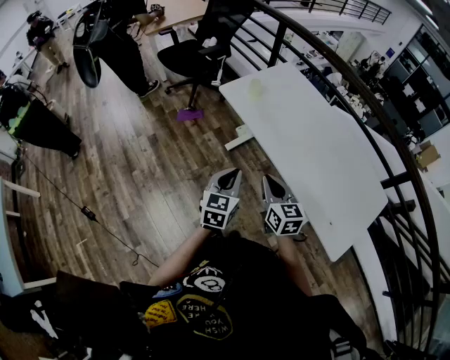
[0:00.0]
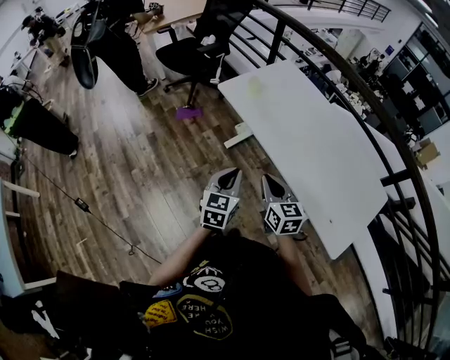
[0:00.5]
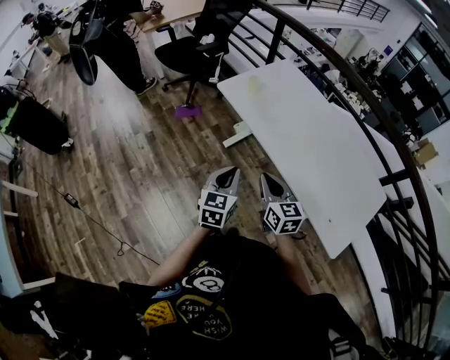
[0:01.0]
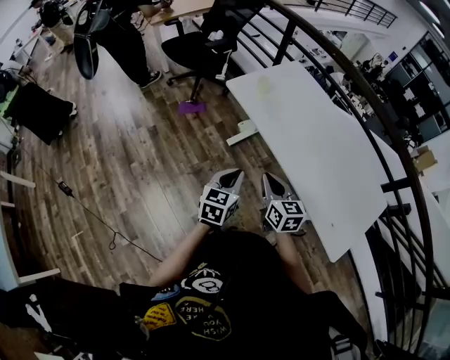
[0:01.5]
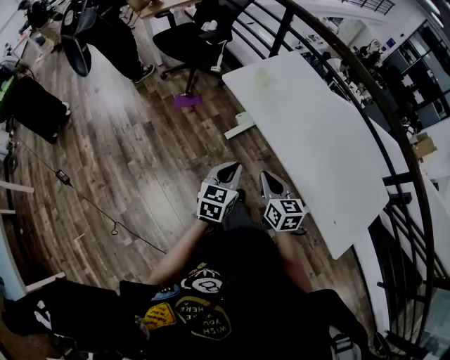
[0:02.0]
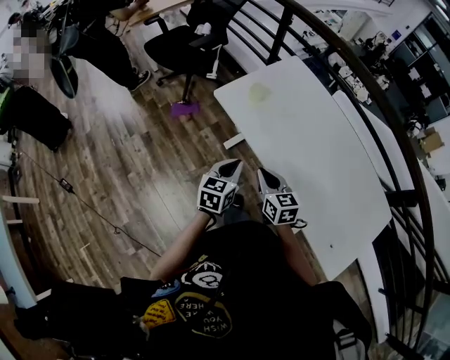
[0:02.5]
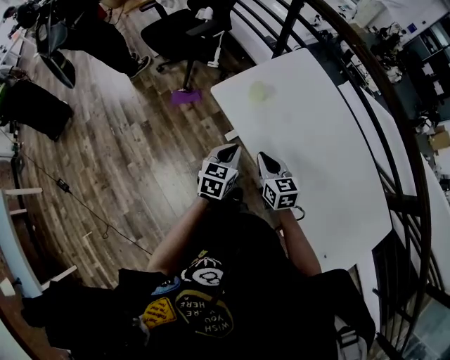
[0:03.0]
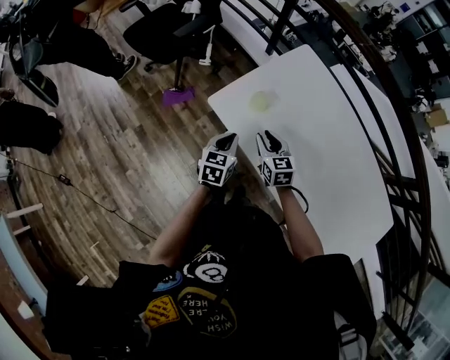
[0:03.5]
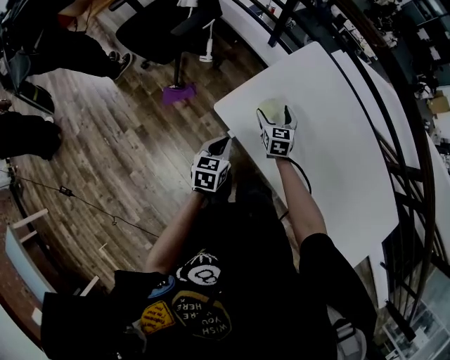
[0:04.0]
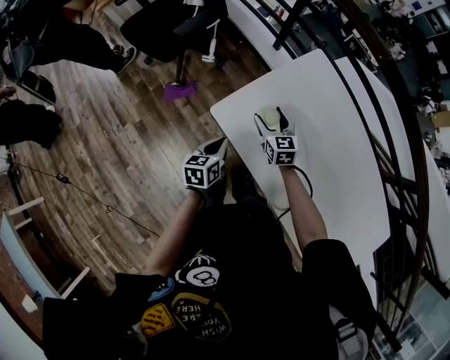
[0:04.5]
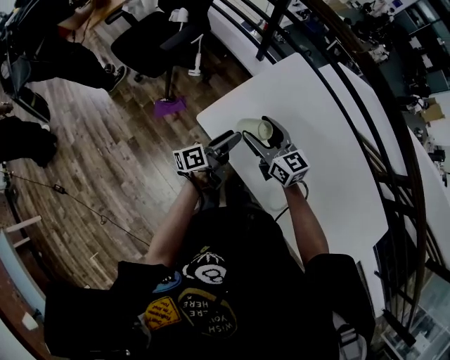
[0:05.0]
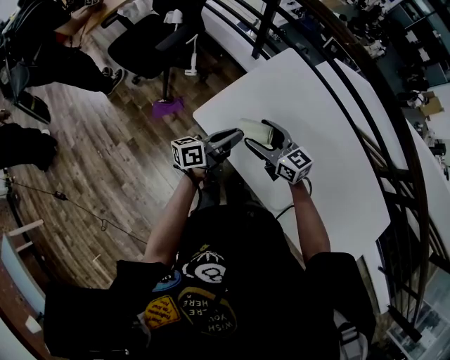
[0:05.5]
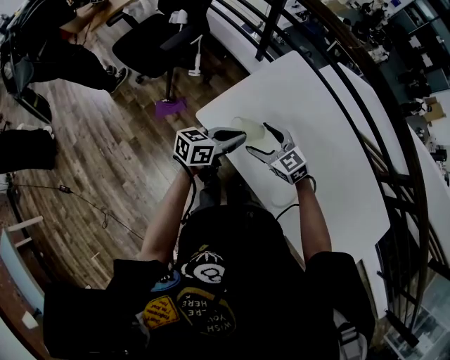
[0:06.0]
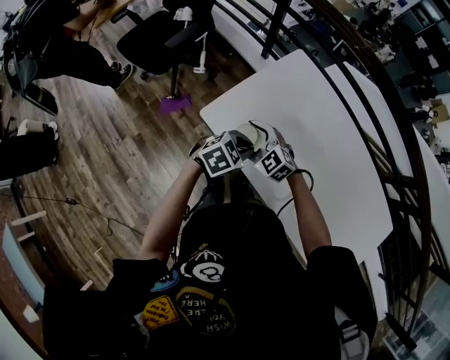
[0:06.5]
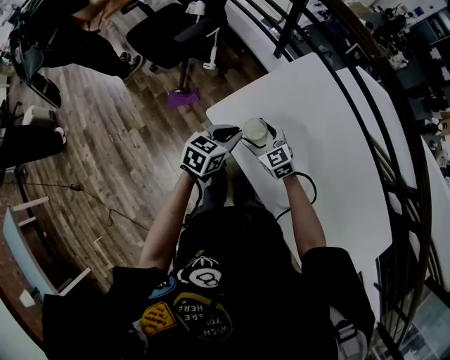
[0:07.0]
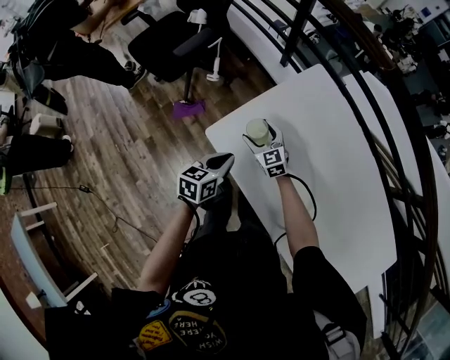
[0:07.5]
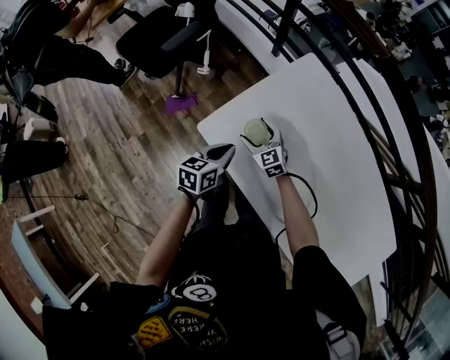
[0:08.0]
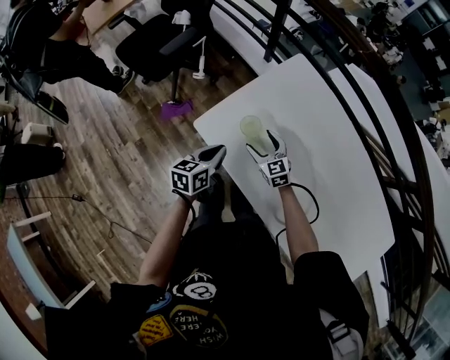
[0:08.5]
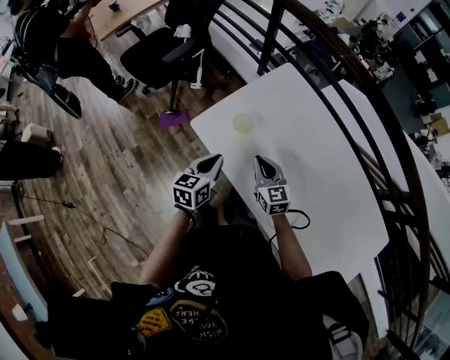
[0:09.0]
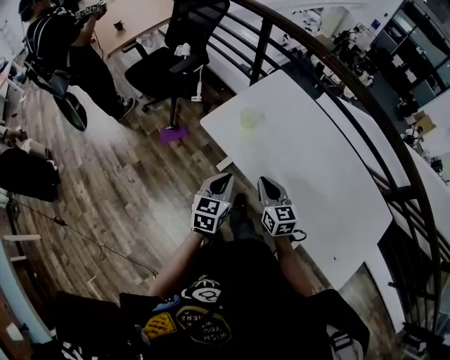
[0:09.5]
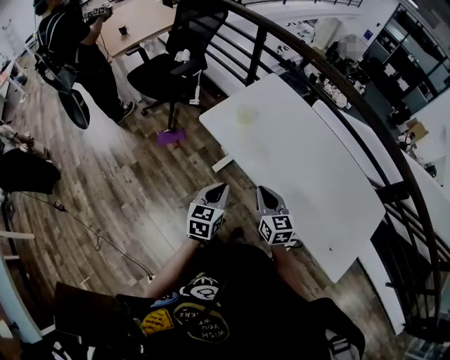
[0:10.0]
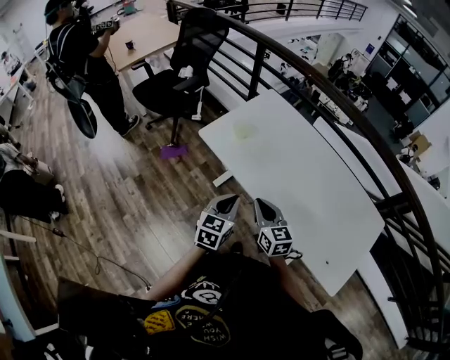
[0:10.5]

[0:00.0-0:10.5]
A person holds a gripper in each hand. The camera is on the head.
0:00.0 to 0:02.0: The right gripper shifts by about 5 cm; the left gripper changes place by approximately 5 cm.
0:02.0 to 0:04.0: The two grippers travel together, forward, about 50 cm. The right gripper changes its angle by some 20 degrees, and opens its fingers.
0:04.0 to 0:06.5: The left gripper ends up about 15 cm from where it was, rotates roughly 50 degrees, and opens, then closes once more, while the right gripper changes place by about 15 cm, and changes its angle by roughly 50 degrees.
0:06.5 to 0:08.5: The right gripper heads downward, covering approximately 10 cm, and swivels about 30 degrees. The left gripper shifts by roughly 10 cm, and twists some 50 degrees counterclockwise, seen from behind.
0:08.5 to 0:10.5: The grippers both shift backward and upward by approximately 40 cm. The left gripper changes its angle by about 30 degrees; the right gripper swivels approximately 20 degrees, and closes its fingers.

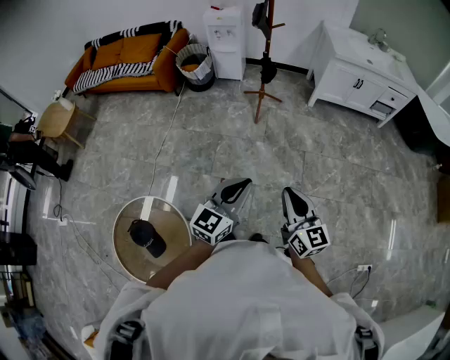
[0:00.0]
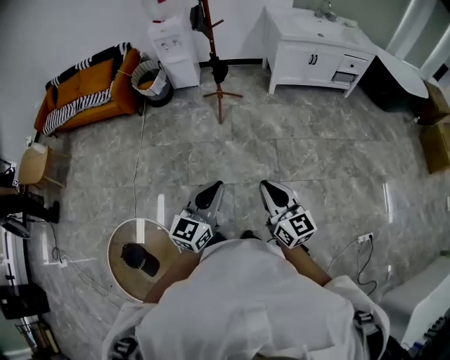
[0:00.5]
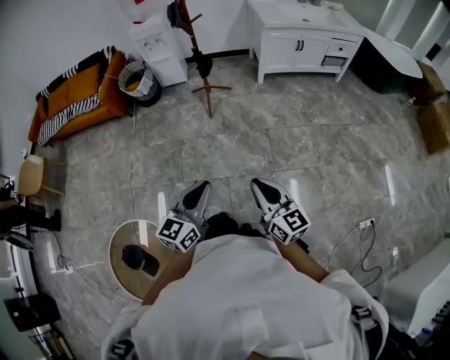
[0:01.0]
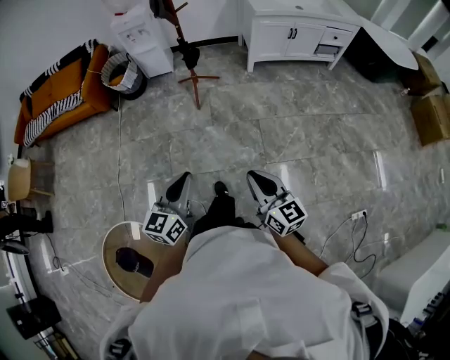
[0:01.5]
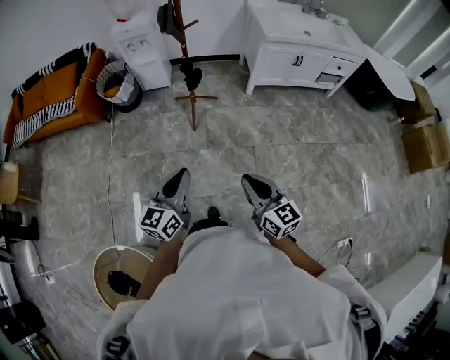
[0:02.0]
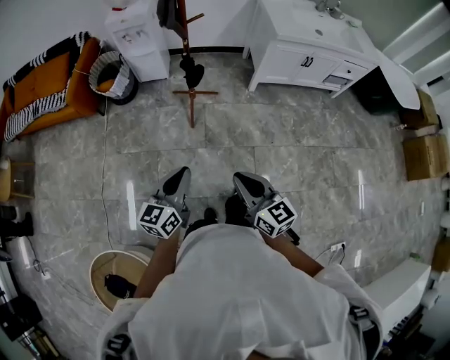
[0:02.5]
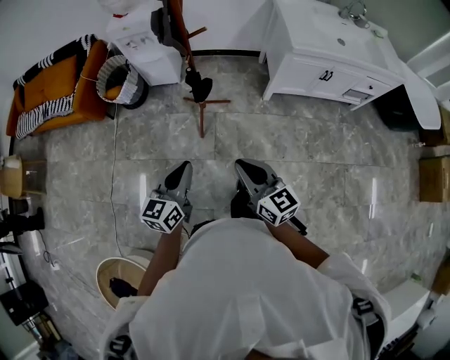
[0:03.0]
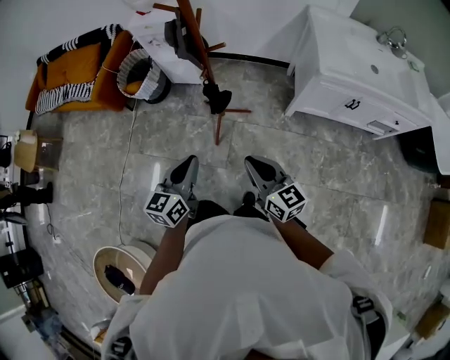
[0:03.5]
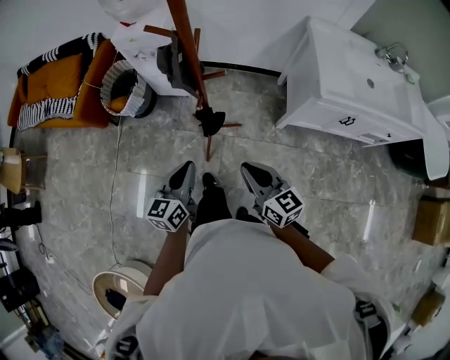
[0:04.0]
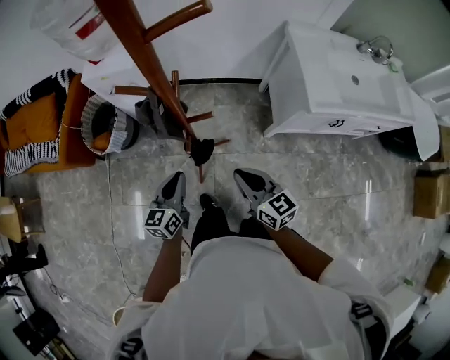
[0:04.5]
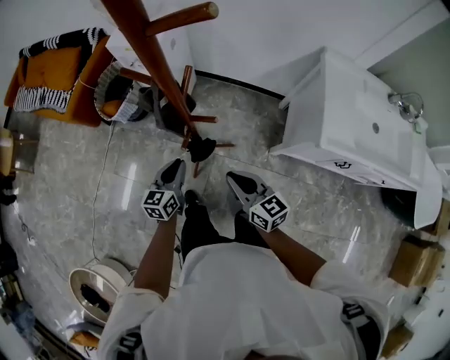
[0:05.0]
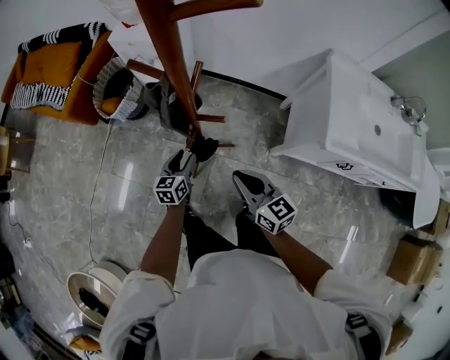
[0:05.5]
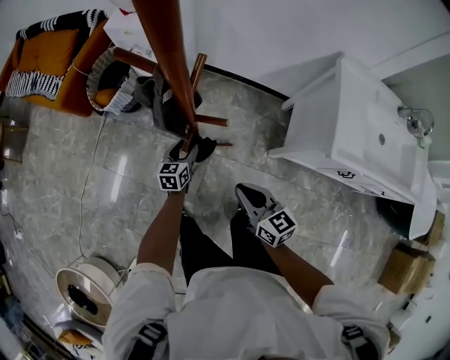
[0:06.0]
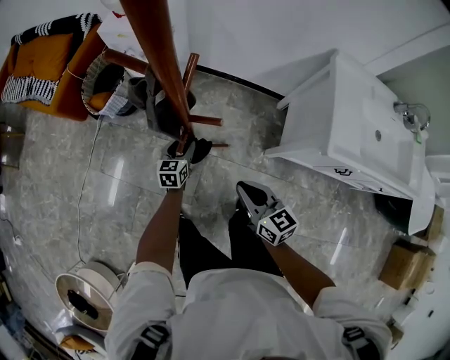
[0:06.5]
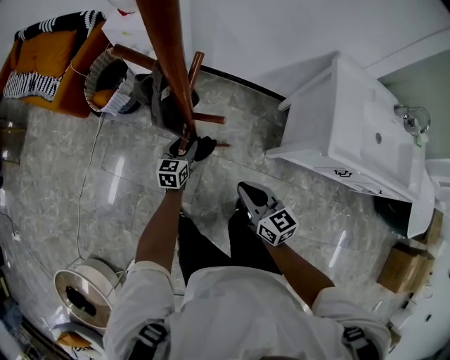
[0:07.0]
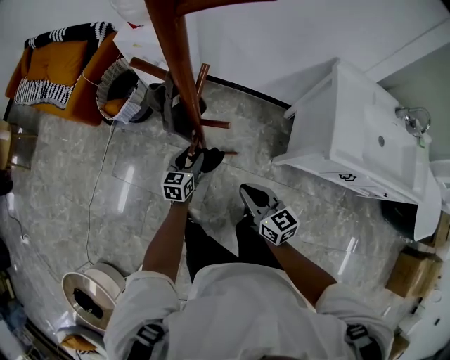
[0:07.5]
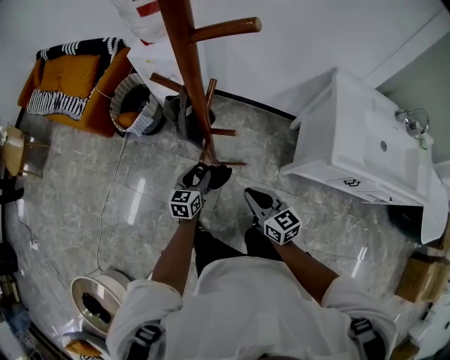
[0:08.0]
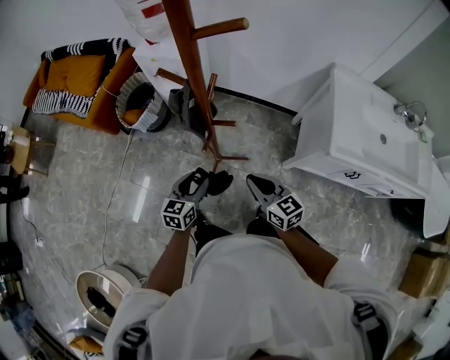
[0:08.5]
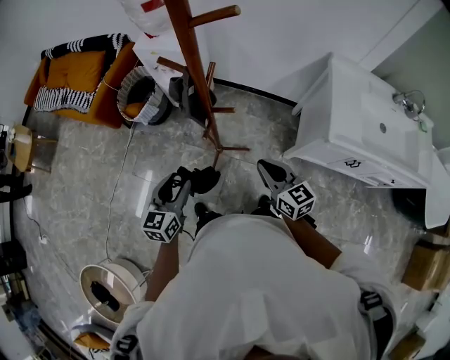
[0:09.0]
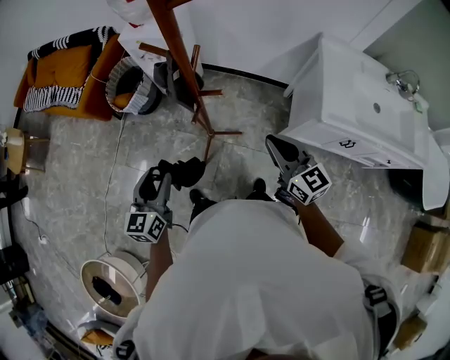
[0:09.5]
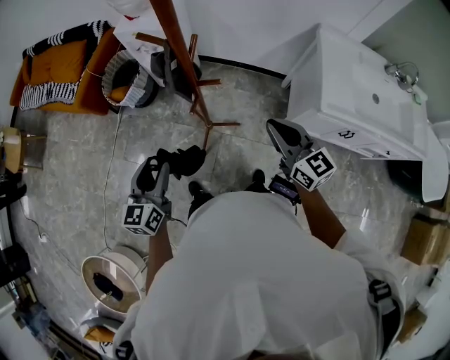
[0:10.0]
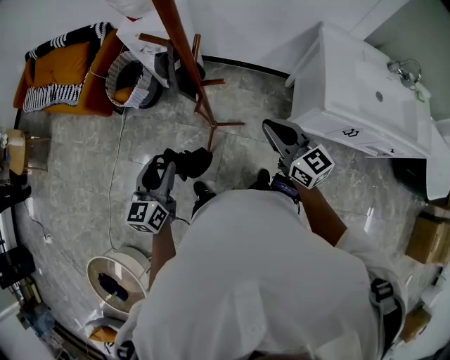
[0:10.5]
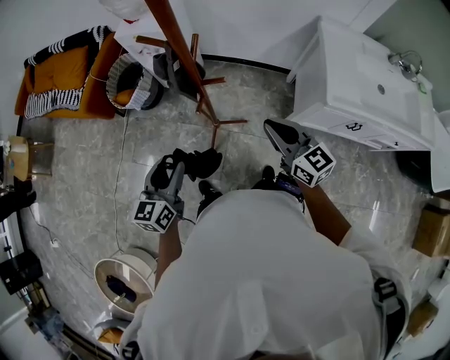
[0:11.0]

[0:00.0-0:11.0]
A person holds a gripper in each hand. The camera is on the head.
0:00.0 to 0:02.0: The grippers both shift forward by approximately 25 cm.
0:02.0 to 0:03.5: The two grippers go roughly 40 cm forward.
0:03.5 to 0:05.5: The right gripper goes roughly 30 cm forward; the left gripper moves forward and downward, roughly 40 cm, and opens.
0:05.5 to 0:07.5: The left gripper travels downward and back again, approximately 10 cm each way.
0:07.5 to 0:09.0: The left gripper goes roughly 25 cm upward, backward and to the left. The right gripper travels upward by approximately 10 cm.
0:09.0 to 0:11.0: The right gripper goes roughly 5 cm upward.

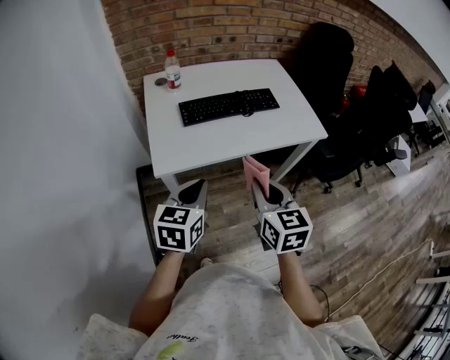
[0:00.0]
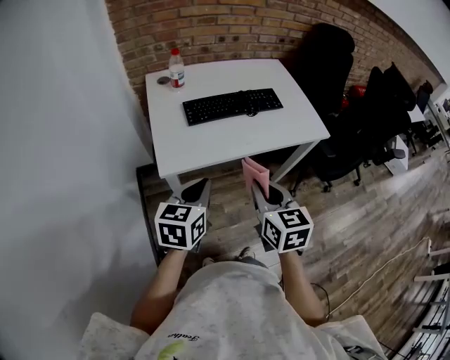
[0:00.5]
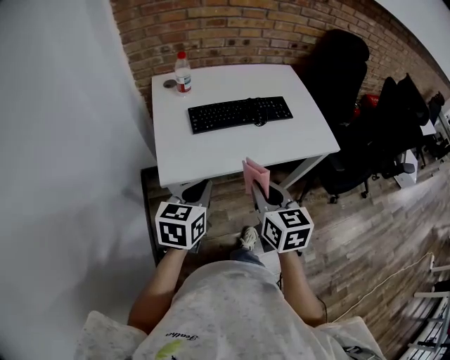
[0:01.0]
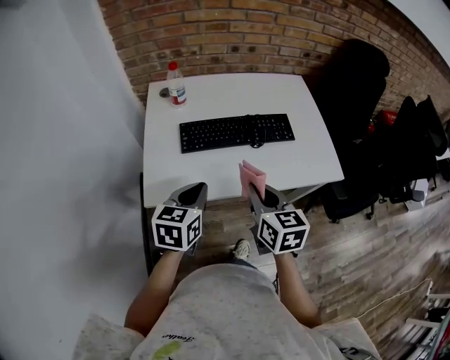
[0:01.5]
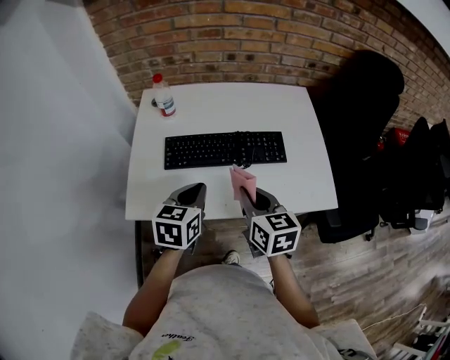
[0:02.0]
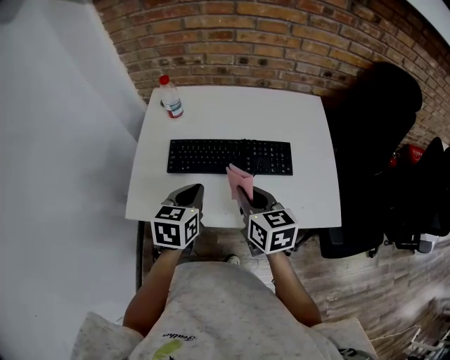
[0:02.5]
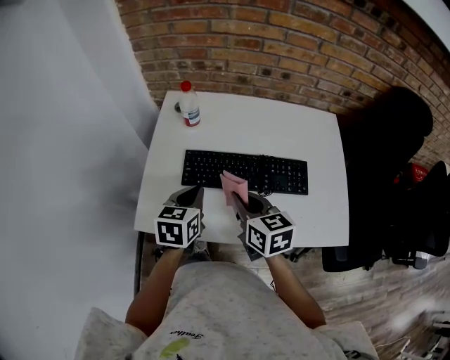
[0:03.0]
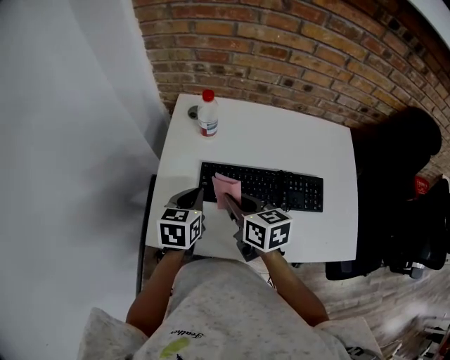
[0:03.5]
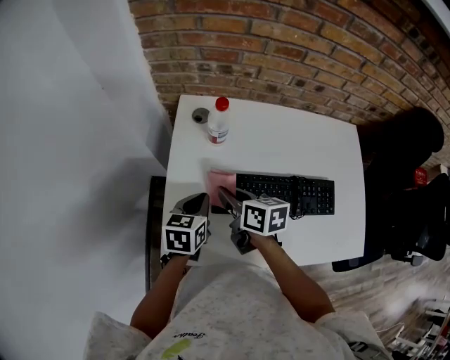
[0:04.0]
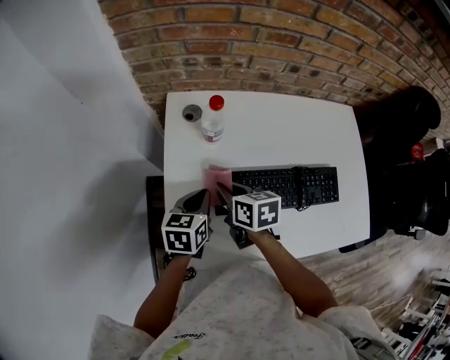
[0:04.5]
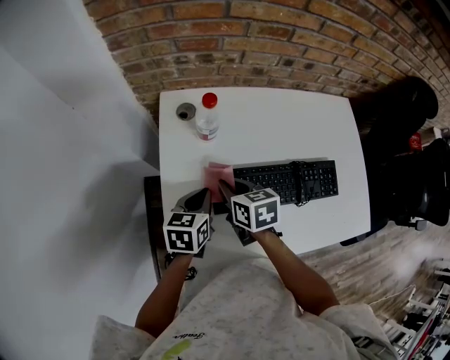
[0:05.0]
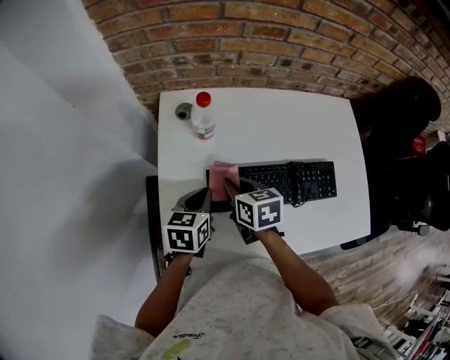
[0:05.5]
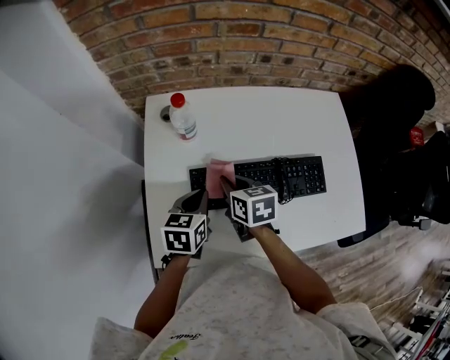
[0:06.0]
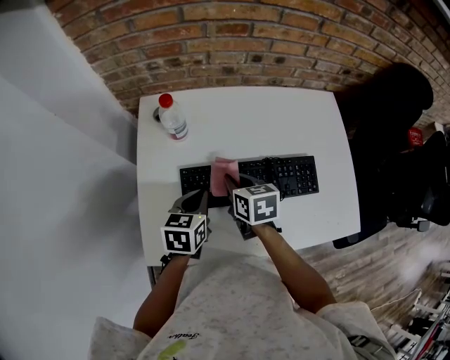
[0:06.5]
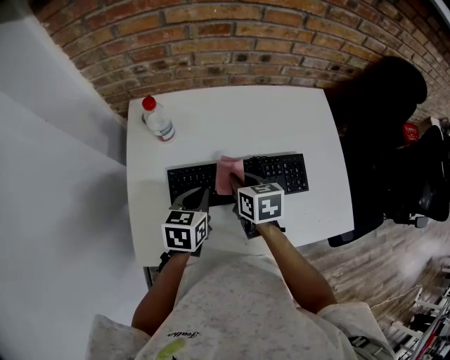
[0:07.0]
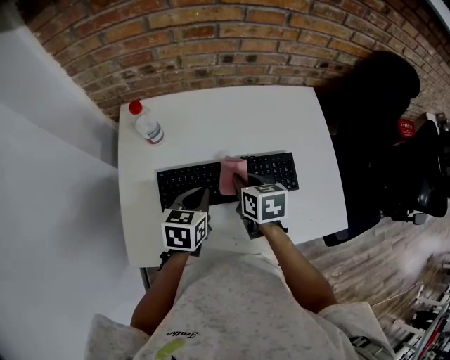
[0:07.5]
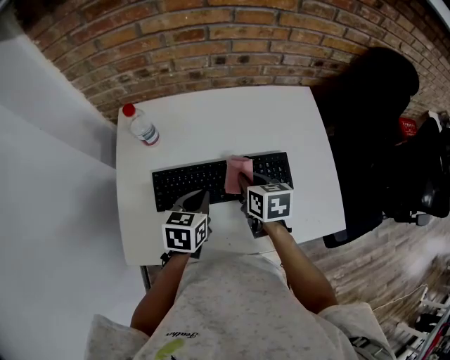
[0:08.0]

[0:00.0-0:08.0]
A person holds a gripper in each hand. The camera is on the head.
0:00.0 to 0:02.0: The two grippers go roughly 25 cm forward.
0:02.0 to 0:04.0: The grippers both shift forward and to the left by approximately 30 cm. The right gripper swivels approximately 30 degrees.
0:04.0 to 0:06.0: The two grippers go some 5 cm to the right.
0:06.0 to 0:08.0: The two grippers go some 15 cm to the right.
